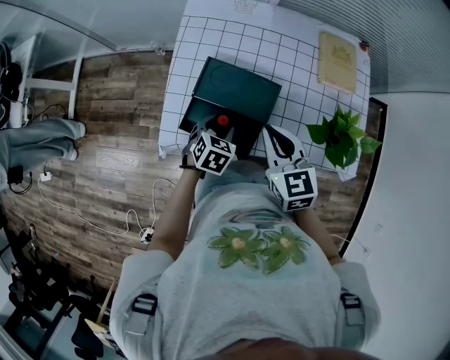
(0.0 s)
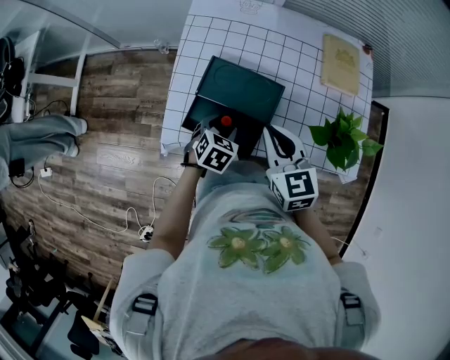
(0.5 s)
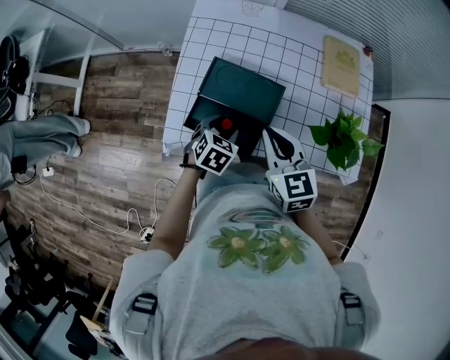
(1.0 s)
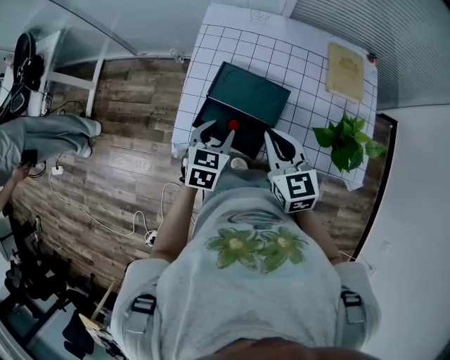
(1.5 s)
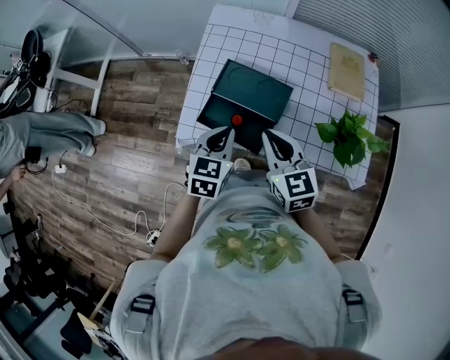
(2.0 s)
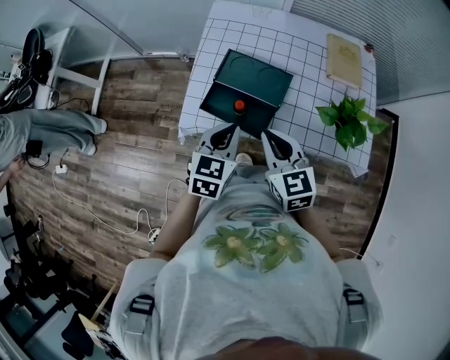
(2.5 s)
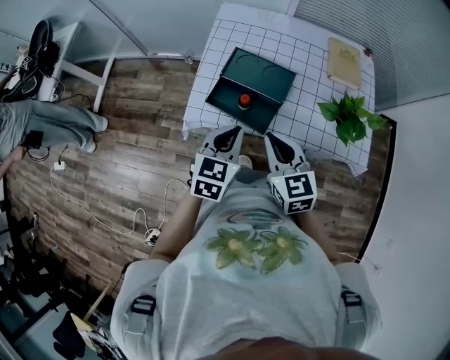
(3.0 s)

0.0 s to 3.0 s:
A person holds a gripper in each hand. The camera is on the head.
0.0 to 1.5 s: The left gripper shifts roughly 10 cm upward.
1.5 to 3.0 s: The right gripper is displaced backward by approximately 10 cm. Meanwhile the left gripper goes about 15 cm backward and upward, and closes.

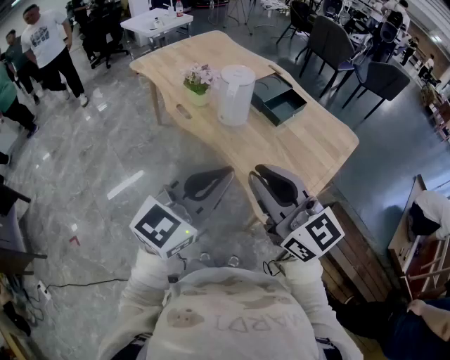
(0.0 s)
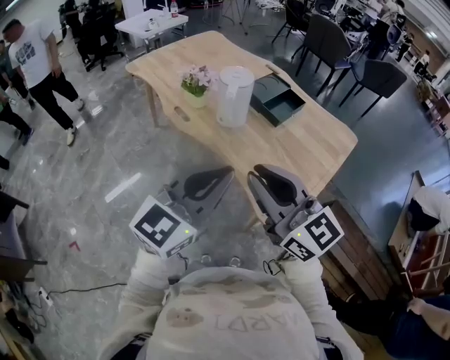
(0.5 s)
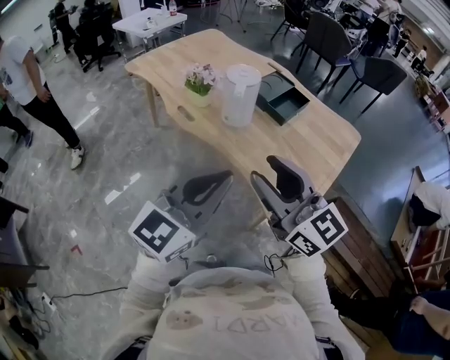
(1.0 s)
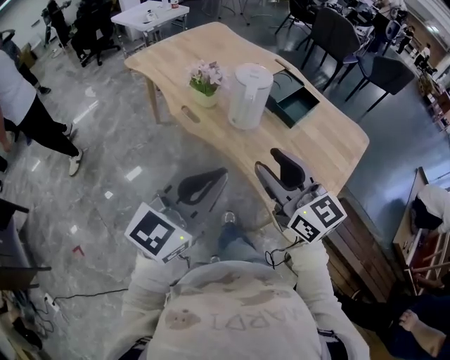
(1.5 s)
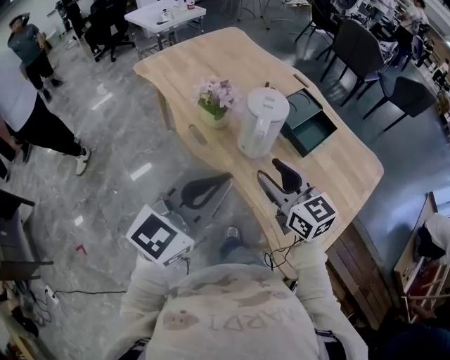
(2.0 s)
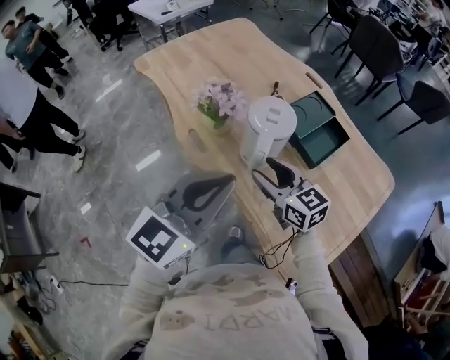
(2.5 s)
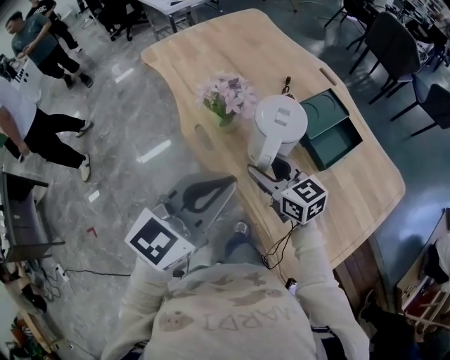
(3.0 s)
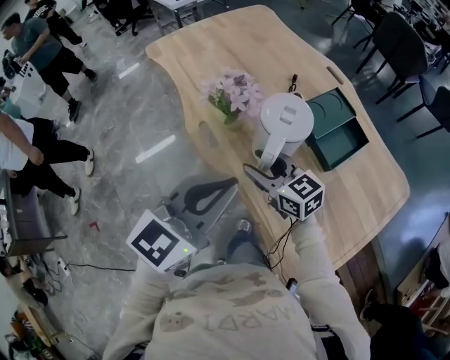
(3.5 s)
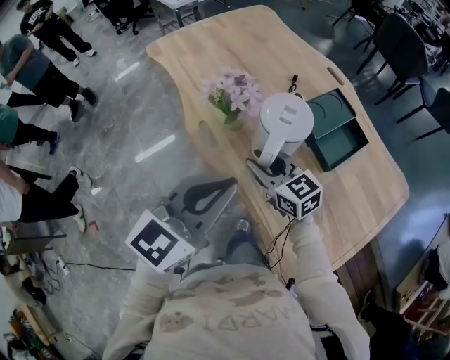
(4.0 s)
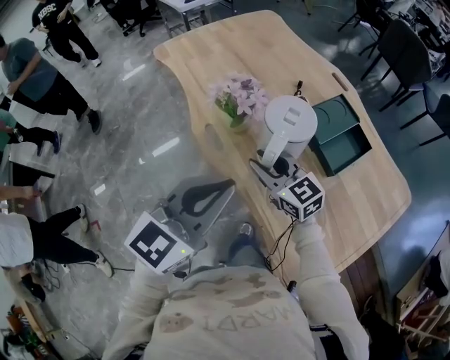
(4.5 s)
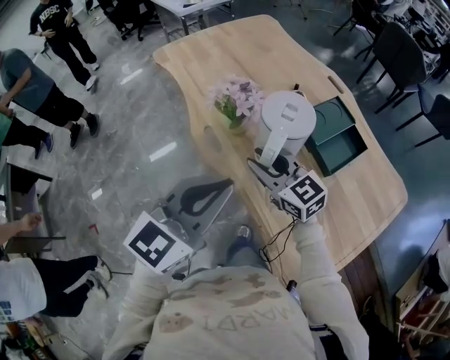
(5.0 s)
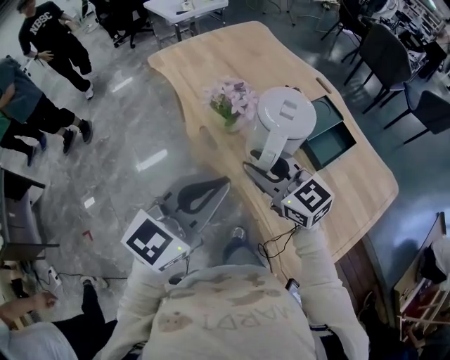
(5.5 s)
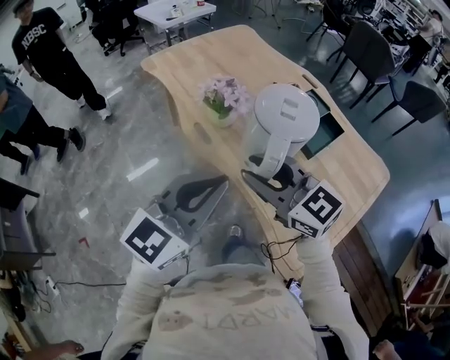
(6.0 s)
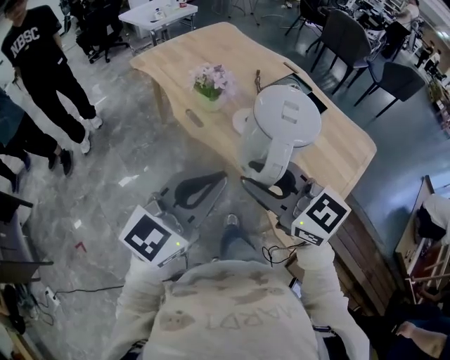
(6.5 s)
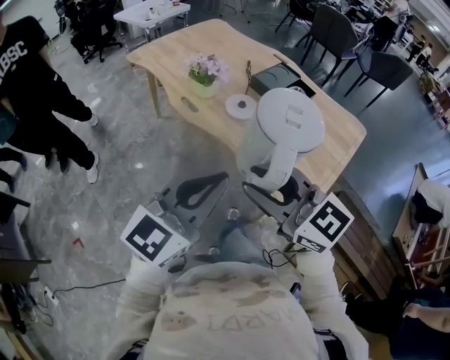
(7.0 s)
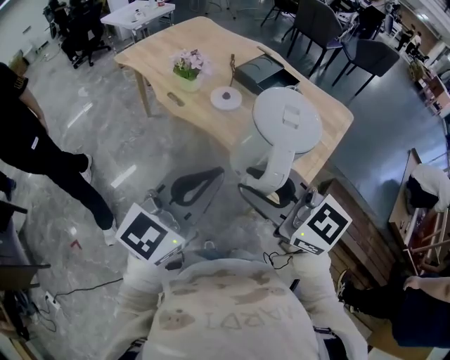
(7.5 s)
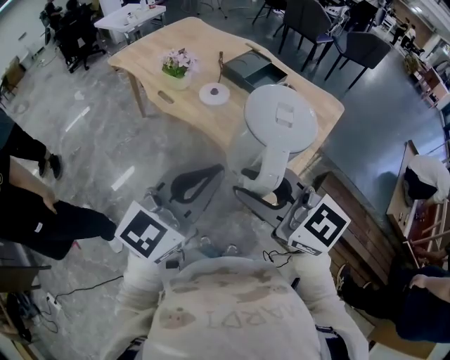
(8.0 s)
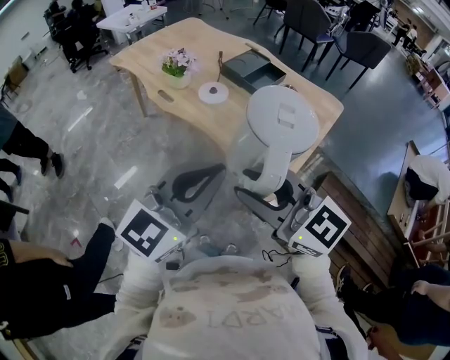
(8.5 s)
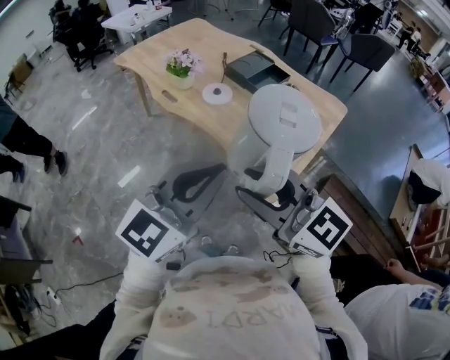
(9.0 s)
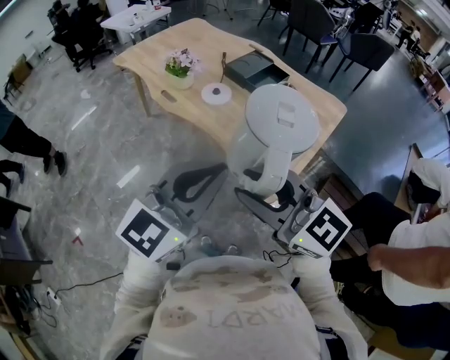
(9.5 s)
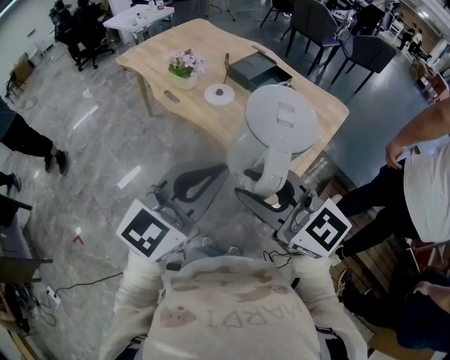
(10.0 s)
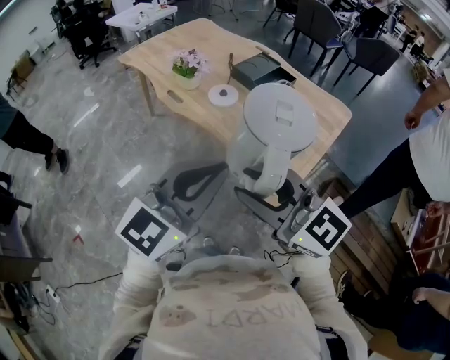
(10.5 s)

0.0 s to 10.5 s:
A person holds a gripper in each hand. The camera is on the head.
0.0 to 2.0 s: The right gripper moves forward and downward, some 30 cm, and opens its fingers, while the left gripper heads forward and to the left, covering about 20 cm.
2.0 to 4.0 s: The right gripper is displaced forward and downward by roughly 15 cm. The left gripper heads forward, covering about 10 cm.
4.0 to 6.5 s: The left gripper travels backward by some 20 cm. Meanwhile the right gripper goes about 30 cm backward and upward.
6.5 to 8.5 s: The left gripper heads backward and to the right, covering some 20 cm, while the right gripper heads backward, covering some 20 cm.
8.5 to 10.5 s: The grippers stay close to where they were, moving slightly.

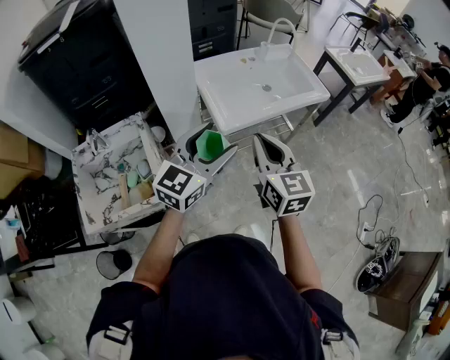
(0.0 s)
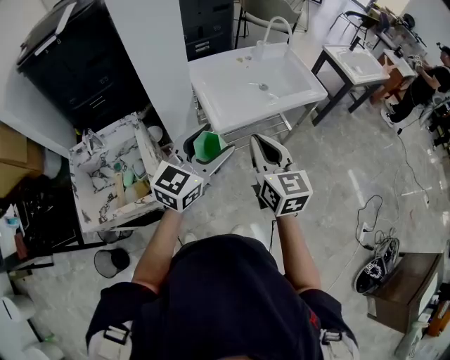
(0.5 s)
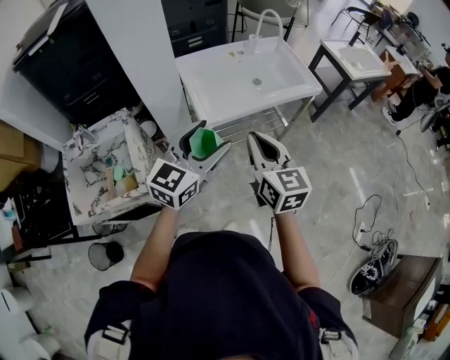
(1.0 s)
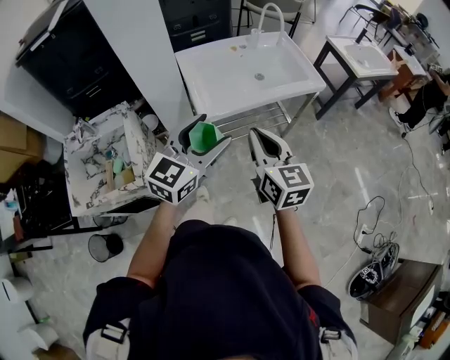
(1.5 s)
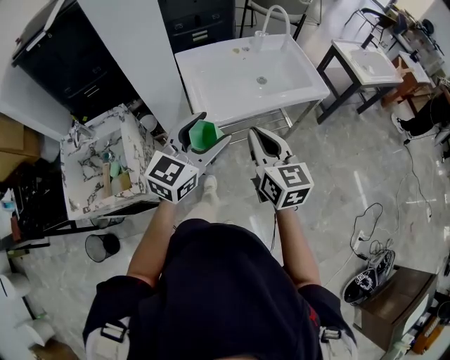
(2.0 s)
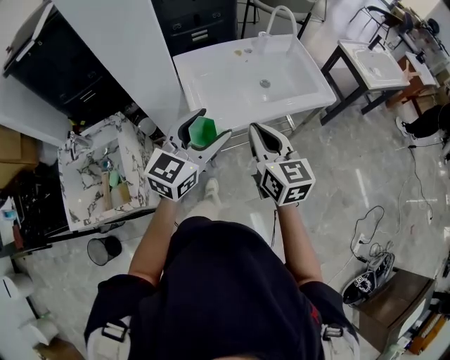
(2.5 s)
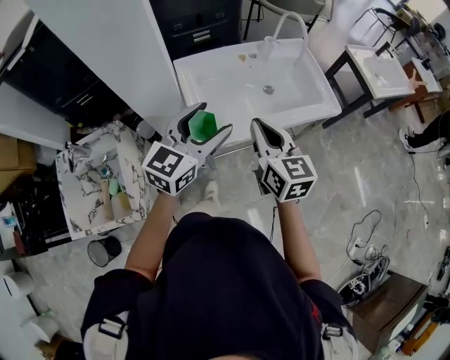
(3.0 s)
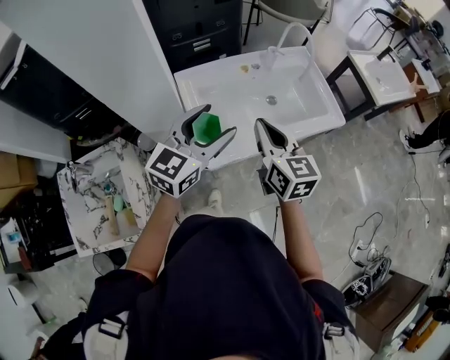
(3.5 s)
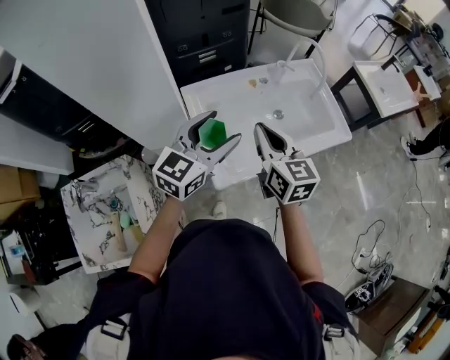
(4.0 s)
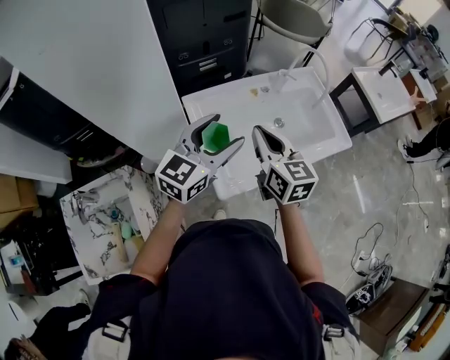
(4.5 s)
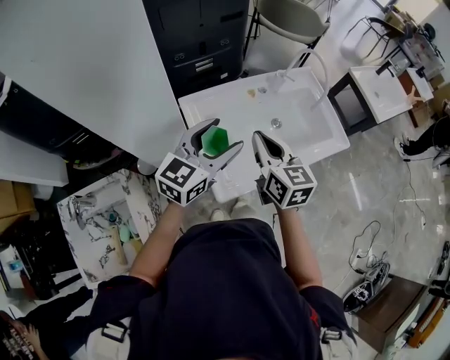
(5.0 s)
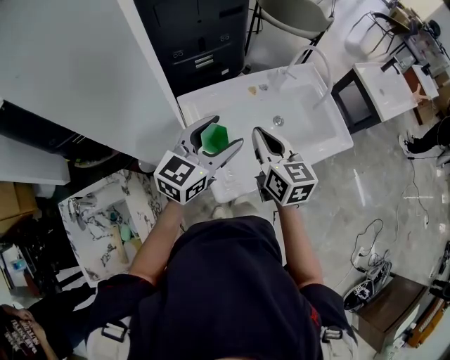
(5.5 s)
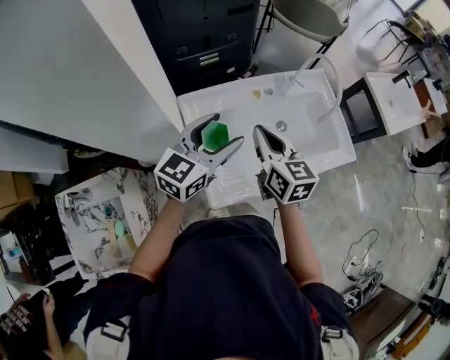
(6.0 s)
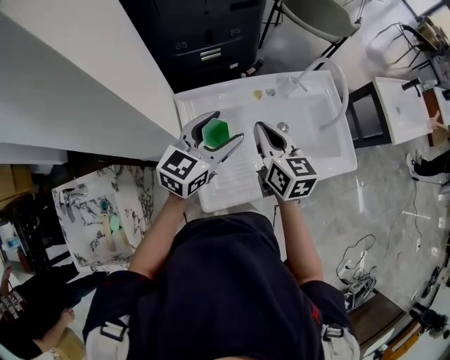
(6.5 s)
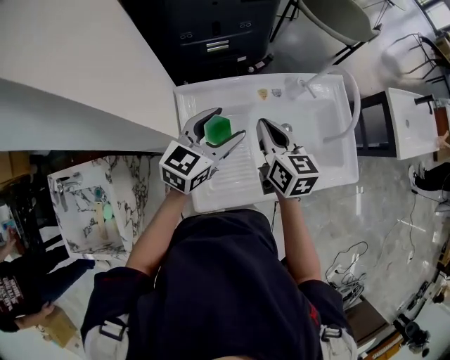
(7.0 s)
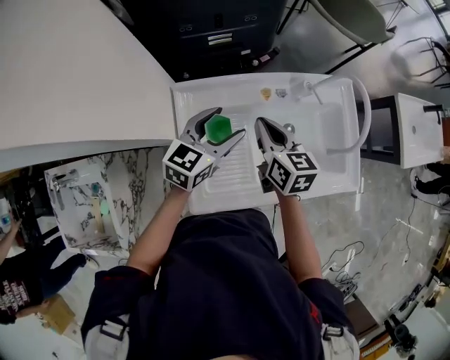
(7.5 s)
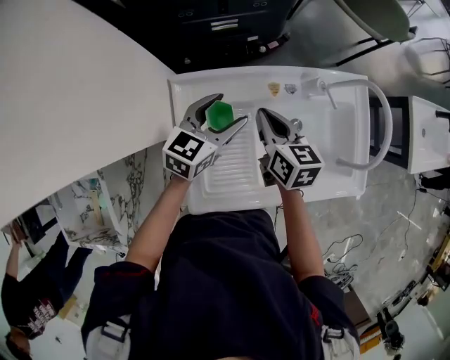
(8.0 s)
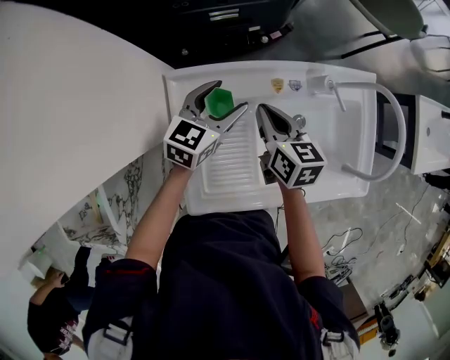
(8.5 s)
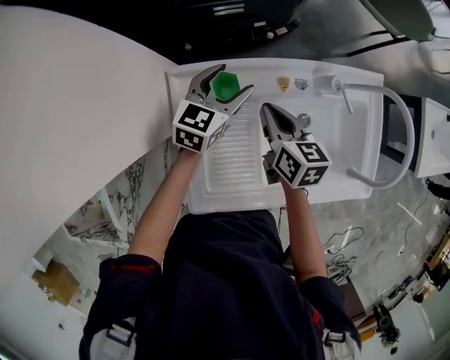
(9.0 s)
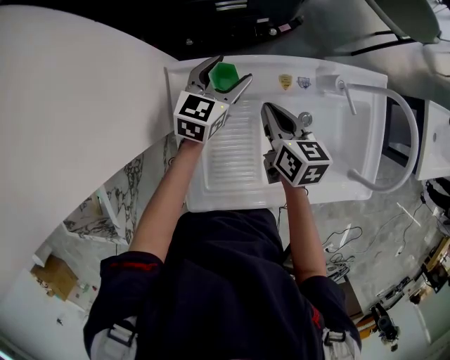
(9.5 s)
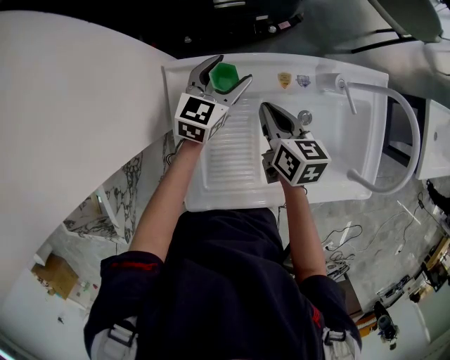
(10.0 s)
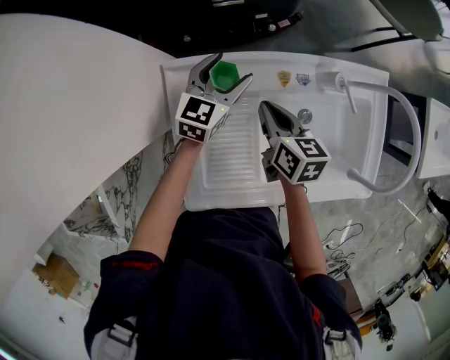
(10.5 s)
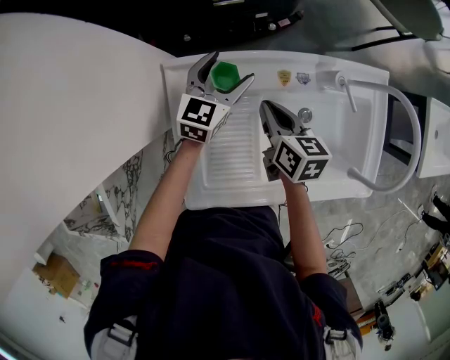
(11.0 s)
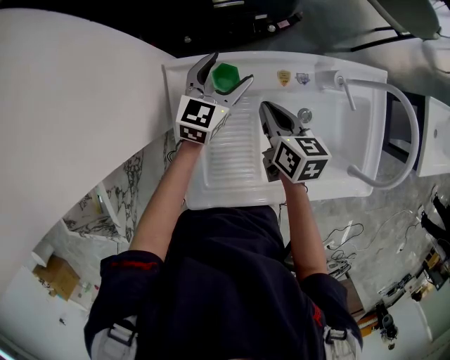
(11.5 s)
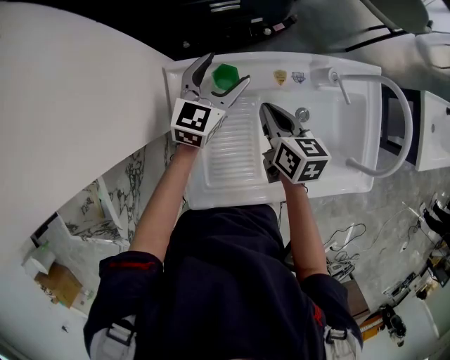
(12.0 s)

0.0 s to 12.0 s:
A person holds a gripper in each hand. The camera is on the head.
0.0 to 2.0 s: Both grippers travel together to the right and forward, some 10 cm.
2.0 to 4.0 s: Both grippers move forward, some 25 cm.
4.0 to 6.0 s: Both grippers travel together forward, roughly 10 cm.
6.0 to 8.0 s: The left gripper heads downward and forward, covering roughly 20 cm. Meanwhile the right gripper heads forward and downward, covering some 20 cm.
8.0 to 10.0 s: The left gripper goes about 10 cm forward and downward. The right gripper travels downward by about 5 cm.
10.0 to 12.0 s: The grippers make only small movements.

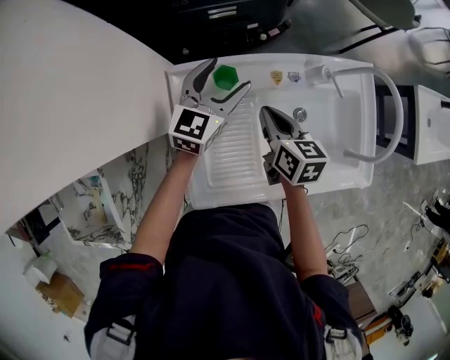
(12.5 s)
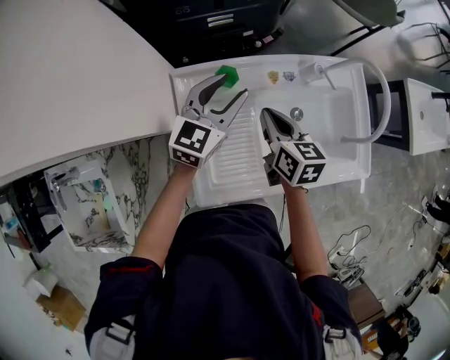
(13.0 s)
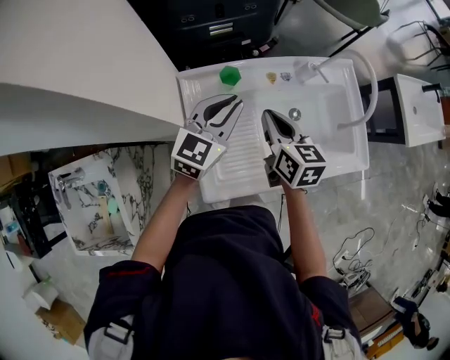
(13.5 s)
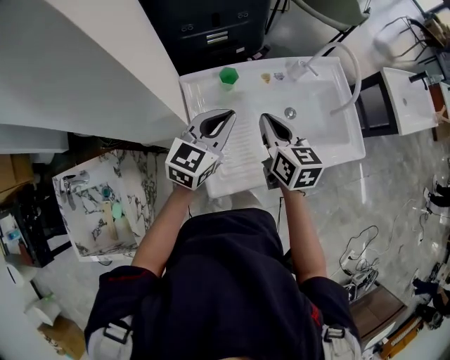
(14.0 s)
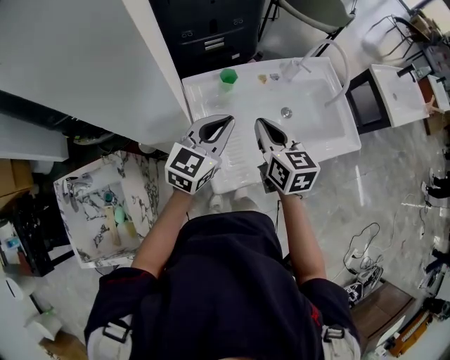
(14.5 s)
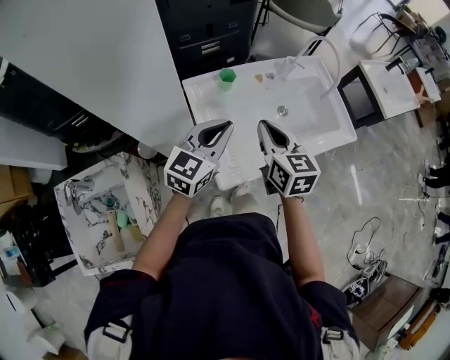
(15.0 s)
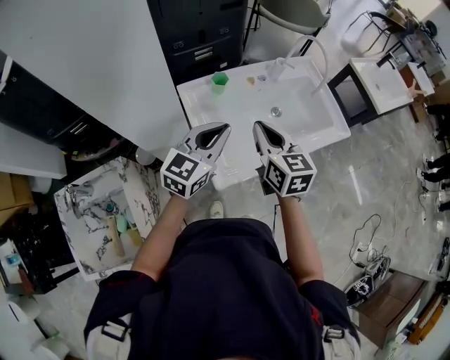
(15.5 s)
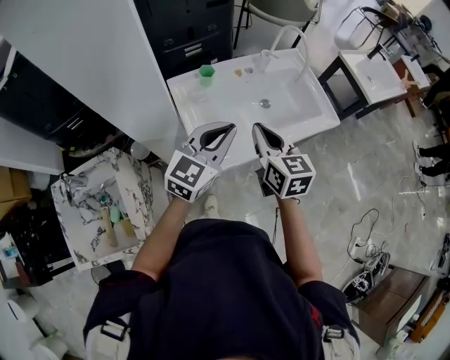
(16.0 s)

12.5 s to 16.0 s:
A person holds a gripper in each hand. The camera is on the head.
12.5 to 14.5 s: Both grippers move backward and upward, approximately 20 cm. The left gripper closes. Meanwhile the right gripper rotates approximately 20 degrees.
14.5 to 16.0 s: The right gripper goes about 10 cm backward and to the right. Meanwhile the left gripper goes roughly 15 cm backward, to the right and upward.
